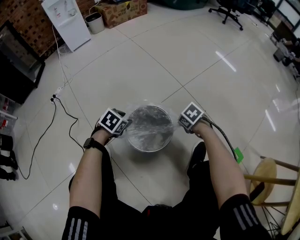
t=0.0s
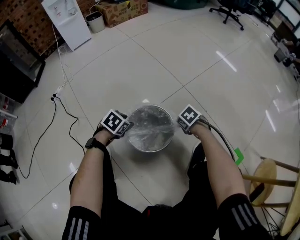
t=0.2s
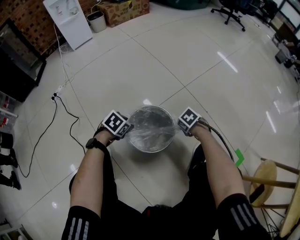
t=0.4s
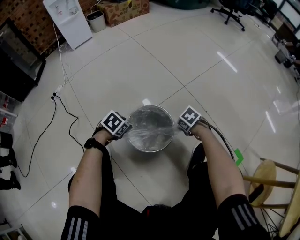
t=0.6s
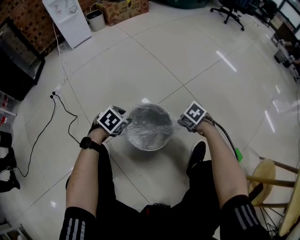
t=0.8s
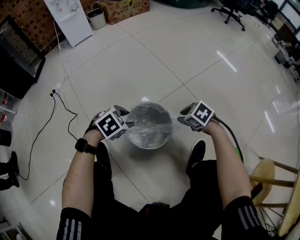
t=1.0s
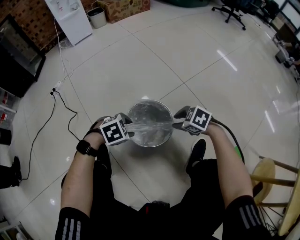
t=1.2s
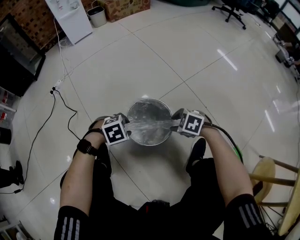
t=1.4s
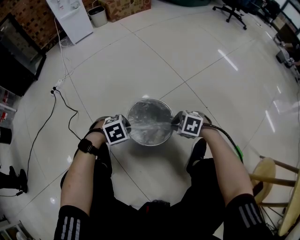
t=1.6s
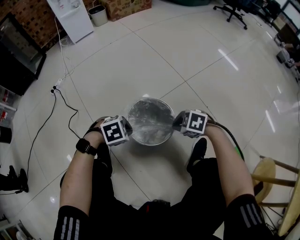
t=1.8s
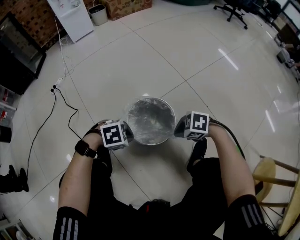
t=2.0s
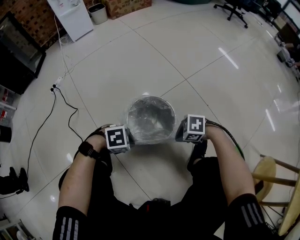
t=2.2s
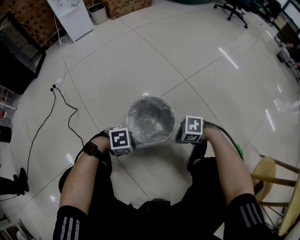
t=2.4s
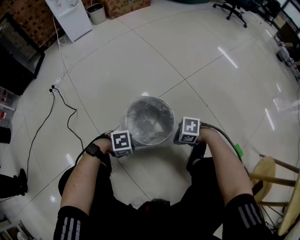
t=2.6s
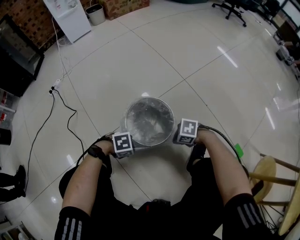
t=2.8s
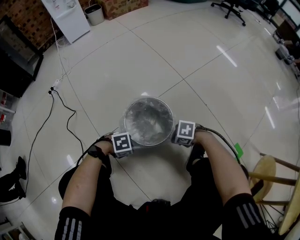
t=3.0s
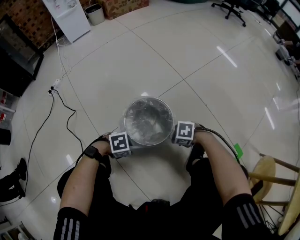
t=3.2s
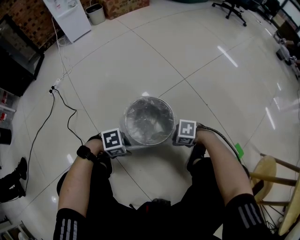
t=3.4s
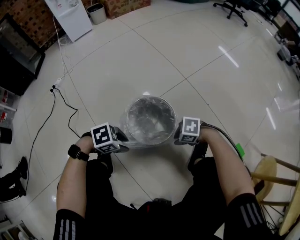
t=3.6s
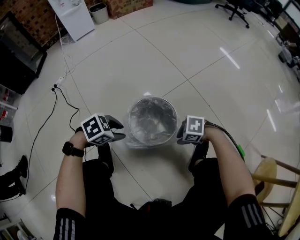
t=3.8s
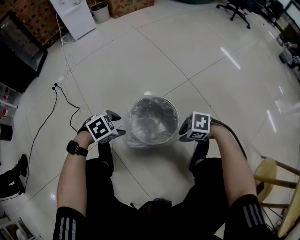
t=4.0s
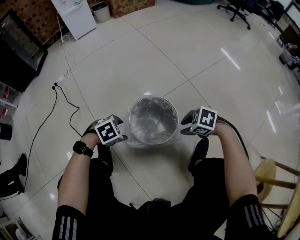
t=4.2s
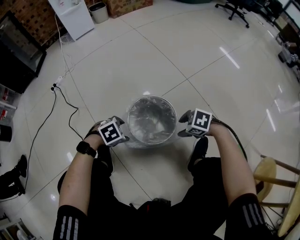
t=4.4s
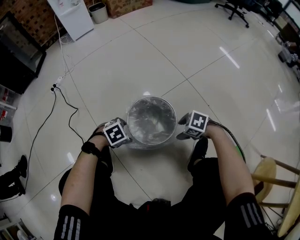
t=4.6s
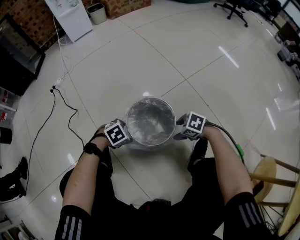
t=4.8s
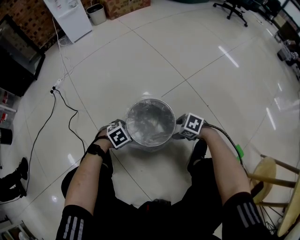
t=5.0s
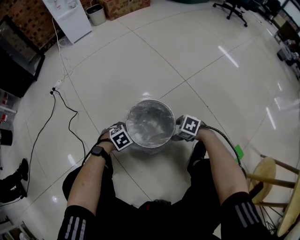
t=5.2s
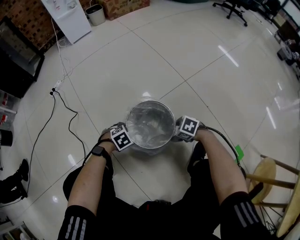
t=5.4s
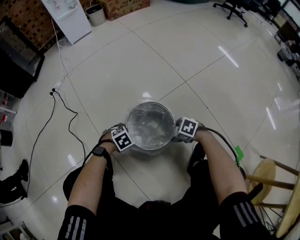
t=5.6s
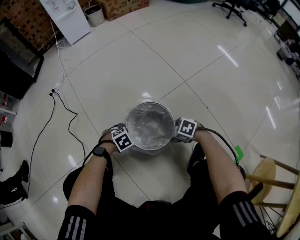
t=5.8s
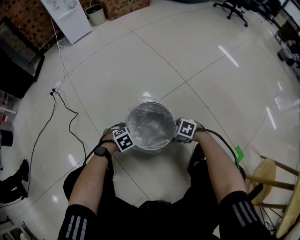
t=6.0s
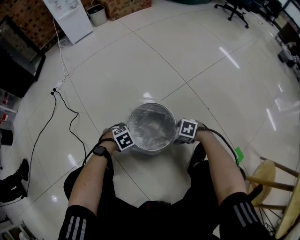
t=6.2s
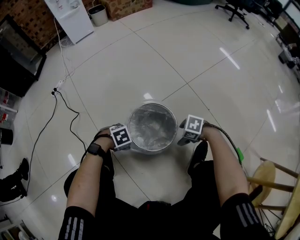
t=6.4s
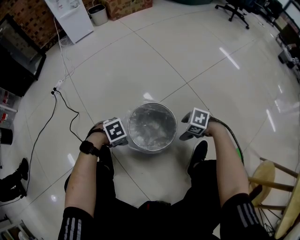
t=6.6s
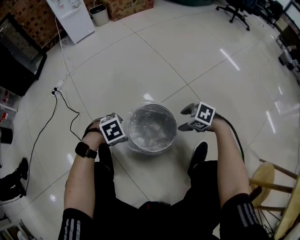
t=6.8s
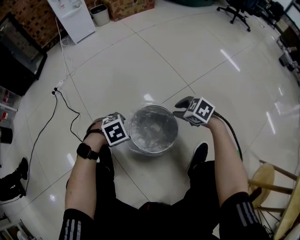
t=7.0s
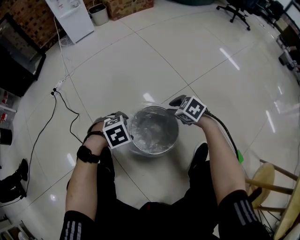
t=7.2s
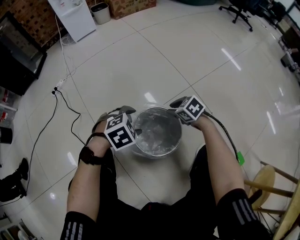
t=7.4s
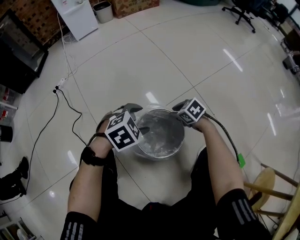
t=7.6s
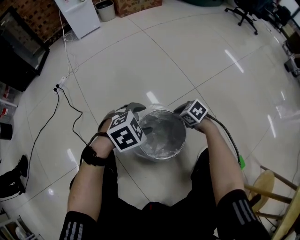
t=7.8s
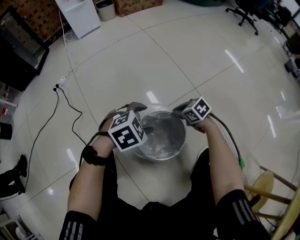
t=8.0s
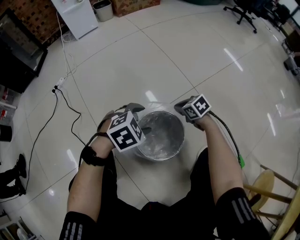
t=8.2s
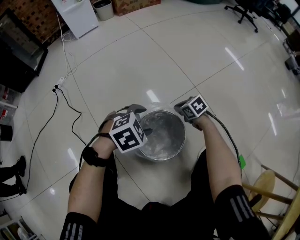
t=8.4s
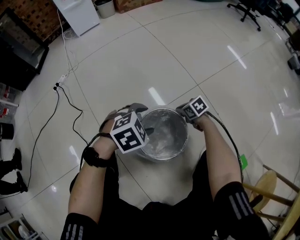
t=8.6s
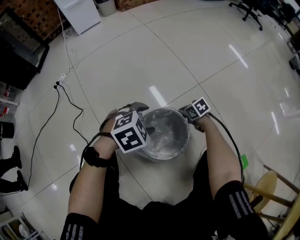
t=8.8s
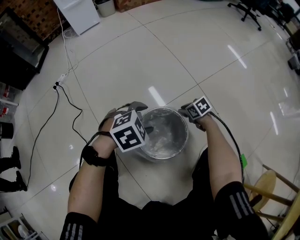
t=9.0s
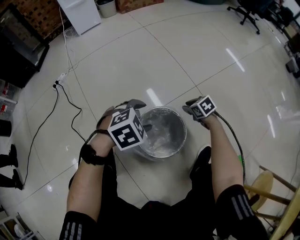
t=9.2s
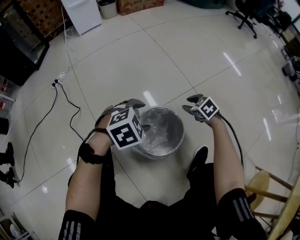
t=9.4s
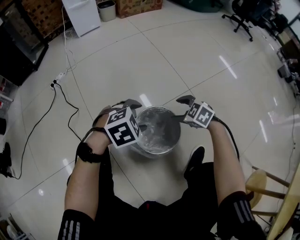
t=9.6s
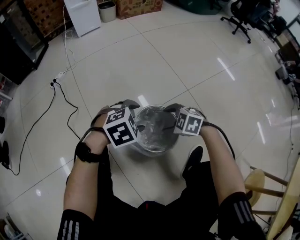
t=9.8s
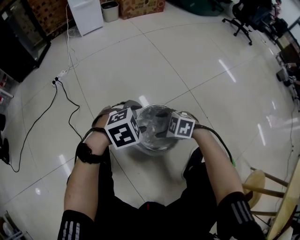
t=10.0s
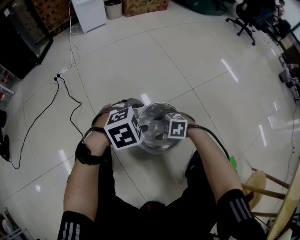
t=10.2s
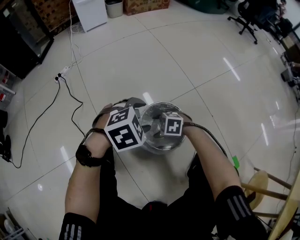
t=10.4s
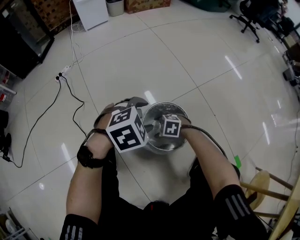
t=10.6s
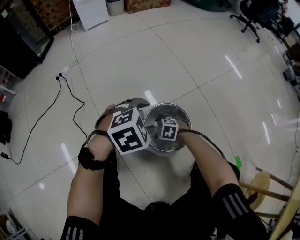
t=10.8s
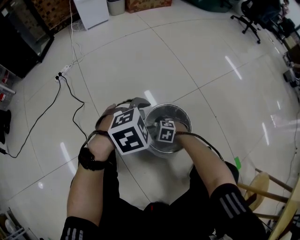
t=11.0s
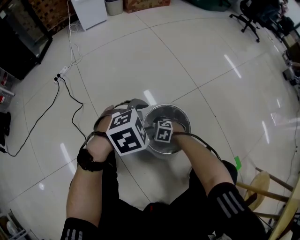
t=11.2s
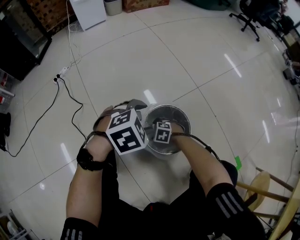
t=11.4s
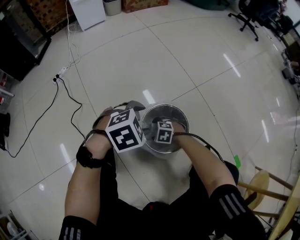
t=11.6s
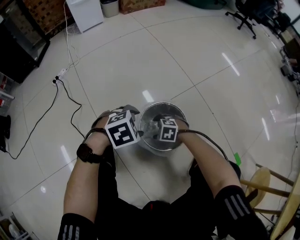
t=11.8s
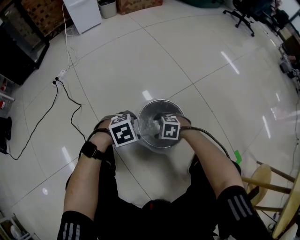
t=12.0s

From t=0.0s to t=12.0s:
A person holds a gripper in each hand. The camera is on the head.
From t=0.0s to t=1.6s: The right gripper reaches roughly 5 cm upward, then returns, rotates approximately 30 degrees, and opens and closes again. The left gripper moves approximately 5 cm upward and comes back, rotates about 30 degrees, and closes.
From t=1.6s to t=3.0s: The right gripper moves some 10 cm, and turns by approximately 20 degrees, while the left gripper changes place by approximately 15 cm, and turns by about 30 degrees.
From t=3.0s to t=4.4s: The right gripper heads upward, covering about 5 cm, and opens; the left gripper turns by roughly 20 degrees, and opens its fingers.
From t=4.4s to t=6.0s: Both grippers move downward, approximately 10 cm. The right gripper opens up.
From t=6.0s to t=7.6s: The left gripper travels upward by roughly 20 cm, and rotates roughly 20 degrees; the right gripper moves about 20 cm, swivels about 20 degrees, and closes its fingers.
From t=7.6s to t=9.0s: The right gripper travels downward by roughly 10 cm.
From t=9.0s to t=10.4s: The right gripper ends up about 25 cm from where it was, twists approximately 60 degrees counterclockwise, seen from behind, and opens up; the left gripper ends up some 10 cm from where it was.
From t=10.4s to t=12.0s: The right gripper goes downward and returns, approximately 10 cm each way; the left gripper is displaced downward by about 10 cm.

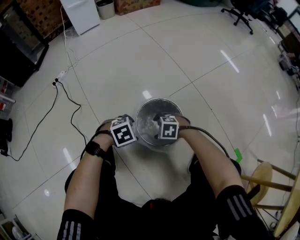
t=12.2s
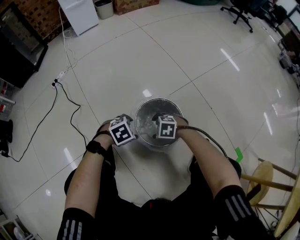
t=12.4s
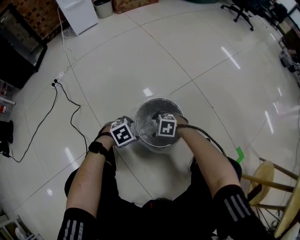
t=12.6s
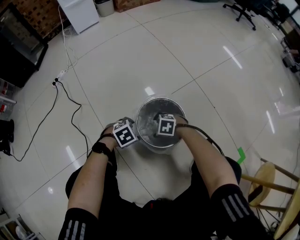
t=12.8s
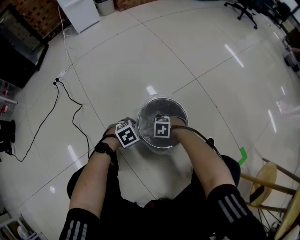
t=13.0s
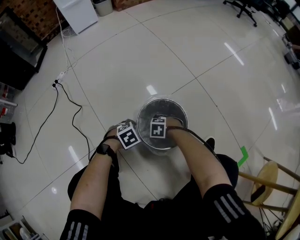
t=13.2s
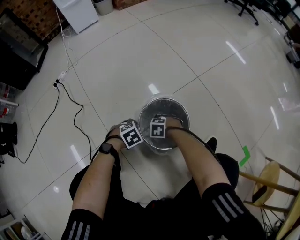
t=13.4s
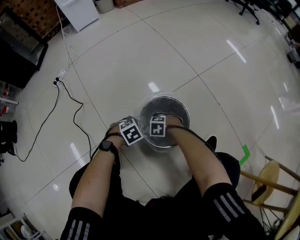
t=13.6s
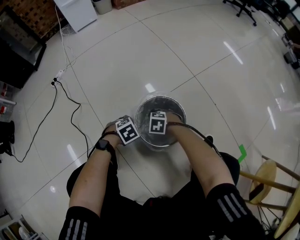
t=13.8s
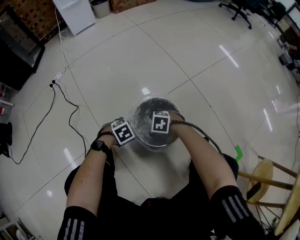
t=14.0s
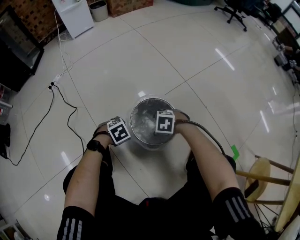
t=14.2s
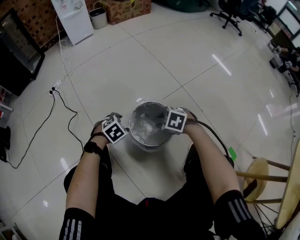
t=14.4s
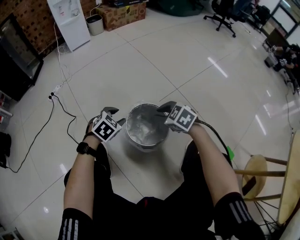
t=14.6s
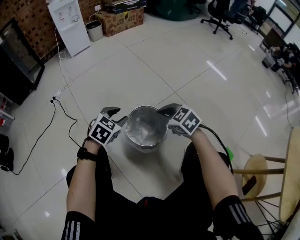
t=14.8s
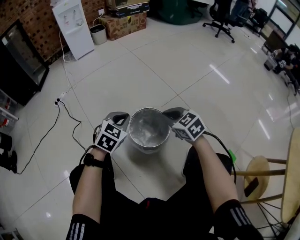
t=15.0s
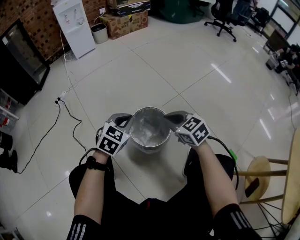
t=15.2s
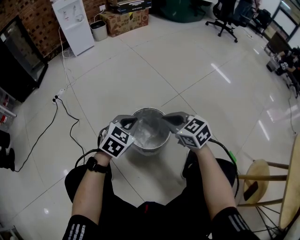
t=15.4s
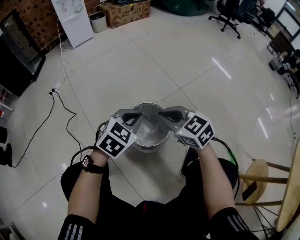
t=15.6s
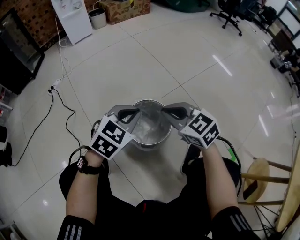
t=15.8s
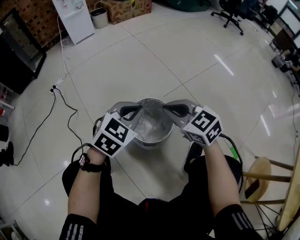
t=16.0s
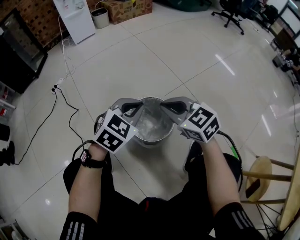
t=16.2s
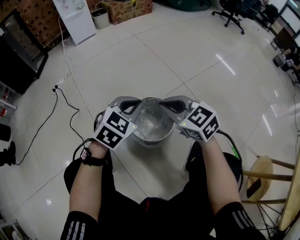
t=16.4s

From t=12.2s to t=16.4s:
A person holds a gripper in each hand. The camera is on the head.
From t=12.2s to t=13.6s: The two grippers go some 10 cm downward.
From t=13.6s to t=15.0s: Both grippers travel together upward, about 30 cm. The left gripper points its fingers about 40 degrees further upward, and closes; the right gripper tips its fingers upward by some 30 degrees, and closes up.
From t=15.0s to t=16.4s: The right gripper shifts by approximately 5 cm. Meanwhile the left gripper changes place by roughly 5 cm.

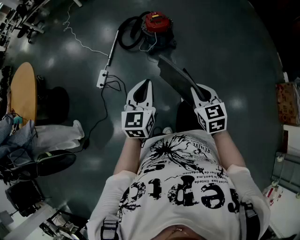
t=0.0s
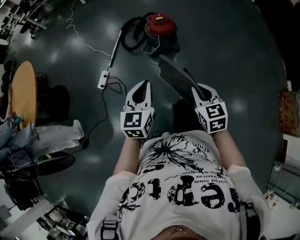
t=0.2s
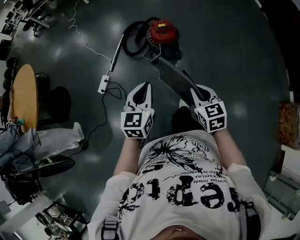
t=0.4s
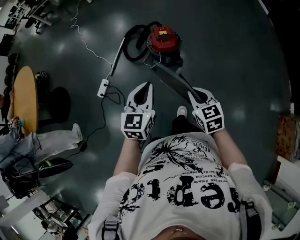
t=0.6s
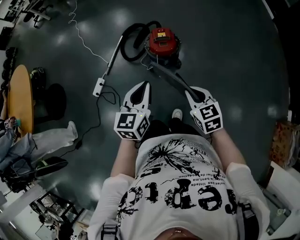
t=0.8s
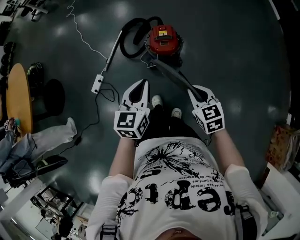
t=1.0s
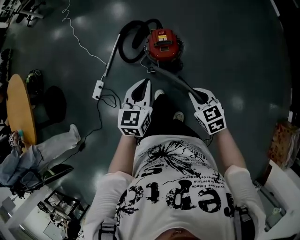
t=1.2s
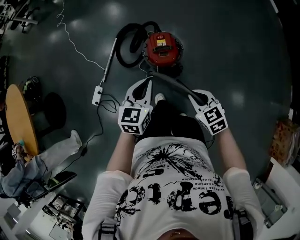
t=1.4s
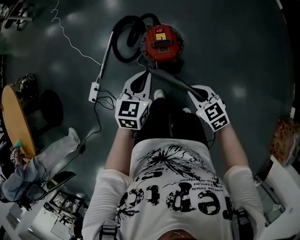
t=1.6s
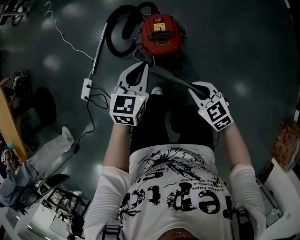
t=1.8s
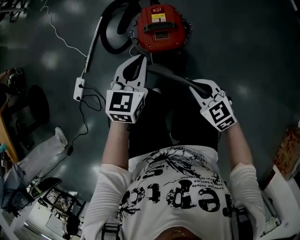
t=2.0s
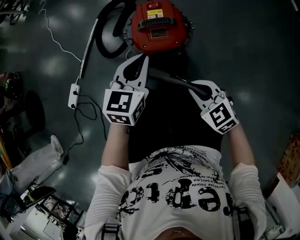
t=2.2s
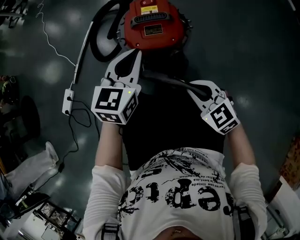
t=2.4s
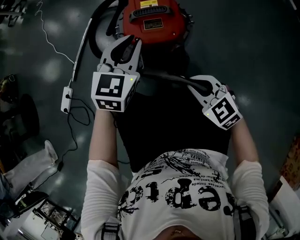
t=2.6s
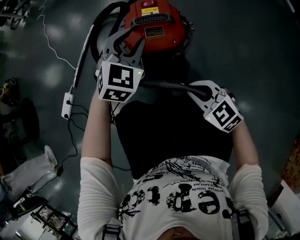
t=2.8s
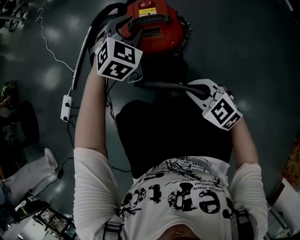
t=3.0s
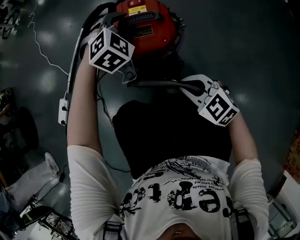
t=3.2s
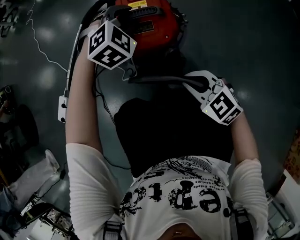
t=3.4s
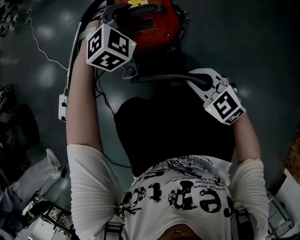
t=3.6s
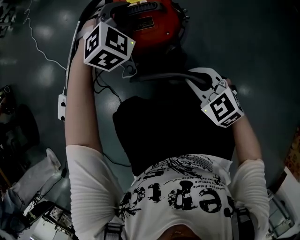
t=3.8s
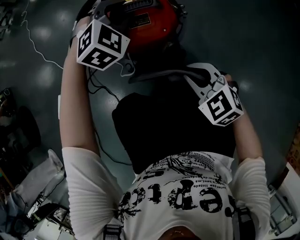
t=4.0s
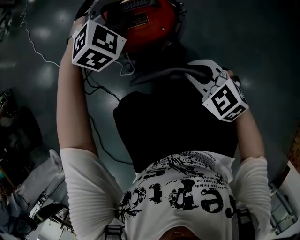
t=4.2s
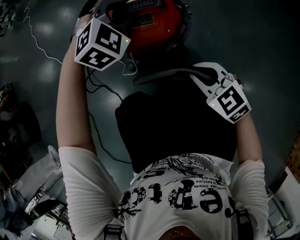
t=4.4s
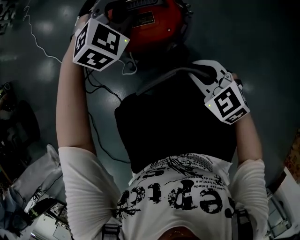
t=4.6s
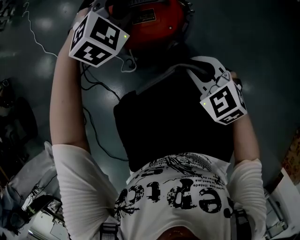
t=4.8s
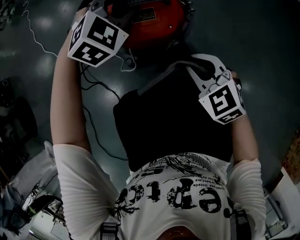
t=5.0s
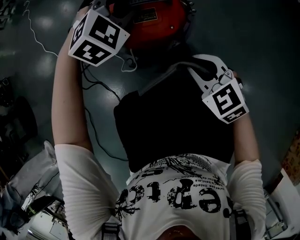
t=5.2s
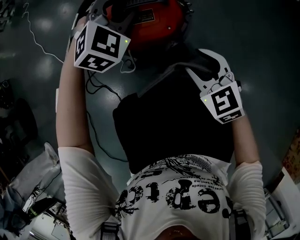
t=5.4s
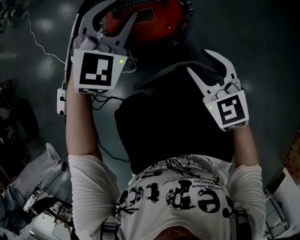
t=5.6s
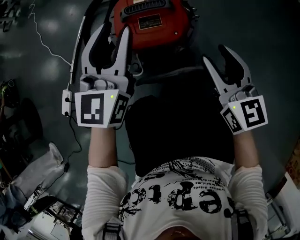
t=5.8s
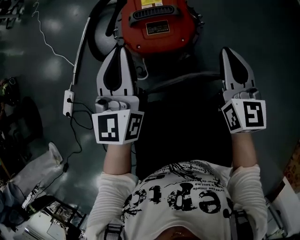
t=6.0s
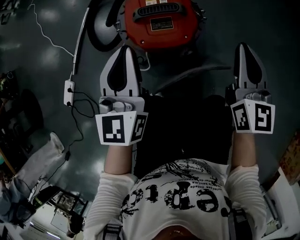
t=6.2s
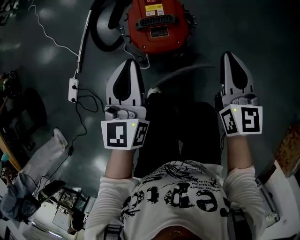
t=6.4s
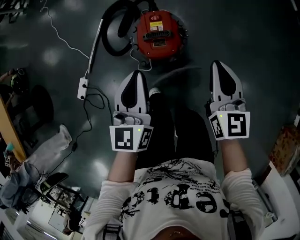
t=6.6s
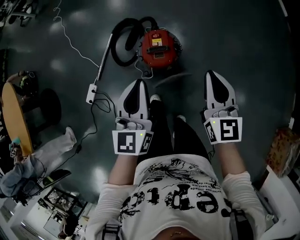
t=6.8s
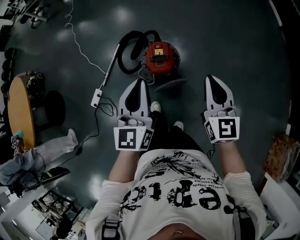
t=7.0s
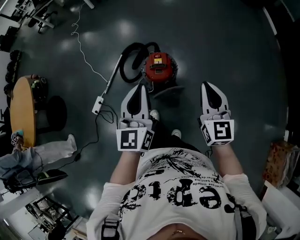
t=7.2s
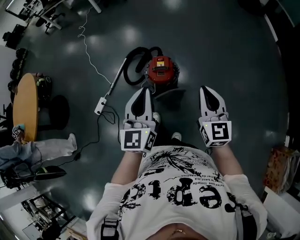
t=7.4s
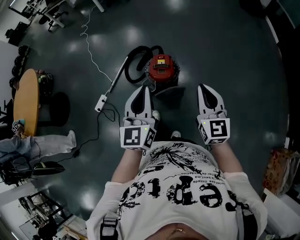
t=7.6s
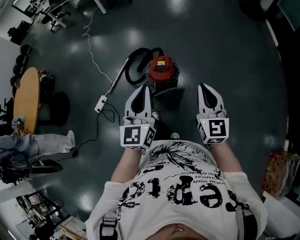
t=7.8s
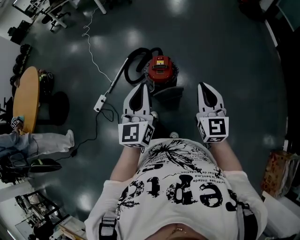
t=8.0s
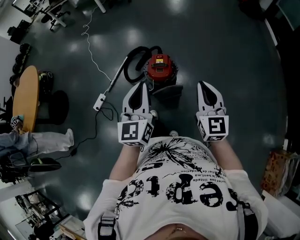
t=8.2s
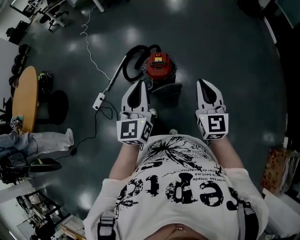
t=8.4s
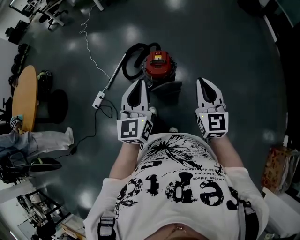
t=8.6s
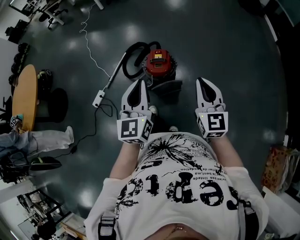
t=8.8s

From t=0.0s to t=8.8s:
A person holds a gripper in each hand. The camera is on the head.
From t=0.0s to t=1.4s: The two grippers travel together, forward, roughly 50 cm. The right gripper rotates some 30 degrees.
From t=1.4s to t=3.0s: The right gripper is displaced downward by about 40 cm, and rotates about 30 degrees; the left gripper moves downward and forward, approximately 50 cm, rolls clockwise, seen from behind, by approximately 50 degrees, and opens its fingers.
From t=3.0s to t=4.4s: There are only small adjustments of the grippers.
From t=4.4s to t=5.8s: The right gripper travels upward and forward by about 10 cm, changes its angle by some 40 degrees, and opens its fingers; the left gripper is displaced upward, backward and to the left by approximately 15 cm, and points its fingers approximately 40 degrees further upward.
From t=5.8s to t=7.4s: The right gripper goes roughly 60 cm upward, and closes its fingers. The left gripper goes about 60 cm upward and backward, and closes its fingers.
From t=7.4s to t=8.8s: The left gripper moves some 5 cm.
